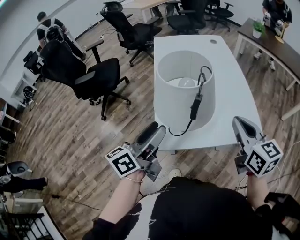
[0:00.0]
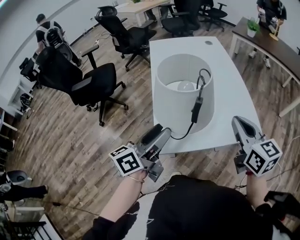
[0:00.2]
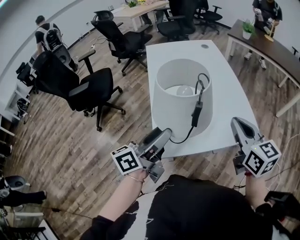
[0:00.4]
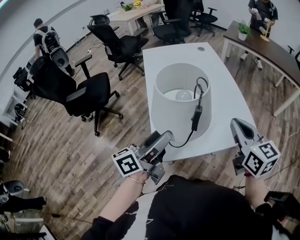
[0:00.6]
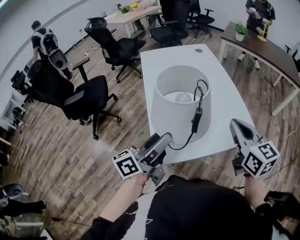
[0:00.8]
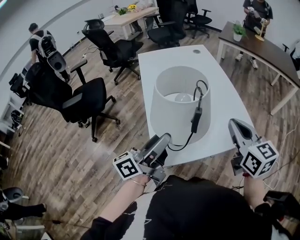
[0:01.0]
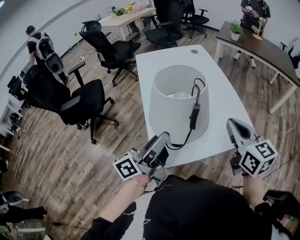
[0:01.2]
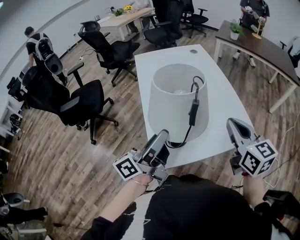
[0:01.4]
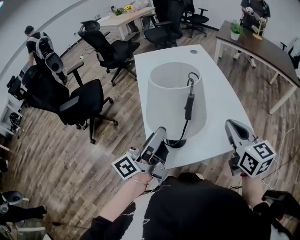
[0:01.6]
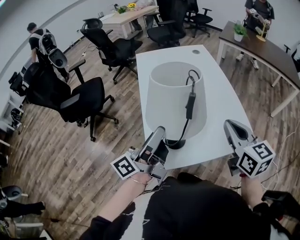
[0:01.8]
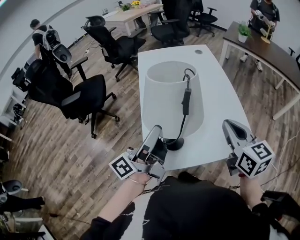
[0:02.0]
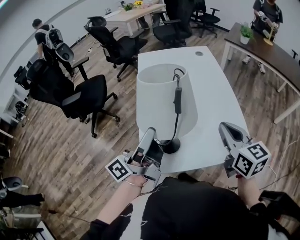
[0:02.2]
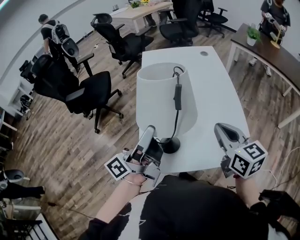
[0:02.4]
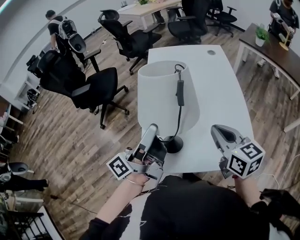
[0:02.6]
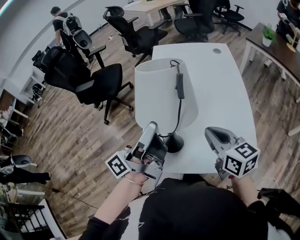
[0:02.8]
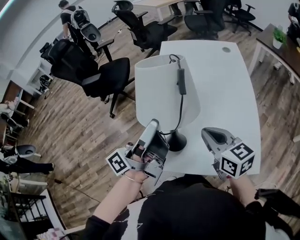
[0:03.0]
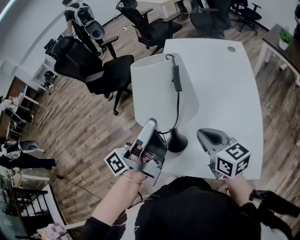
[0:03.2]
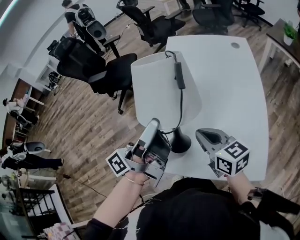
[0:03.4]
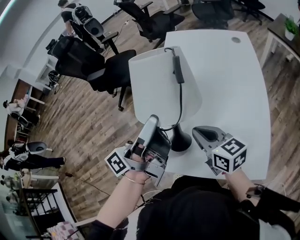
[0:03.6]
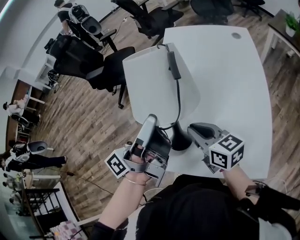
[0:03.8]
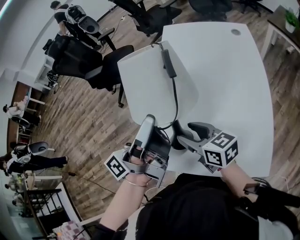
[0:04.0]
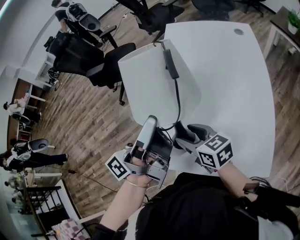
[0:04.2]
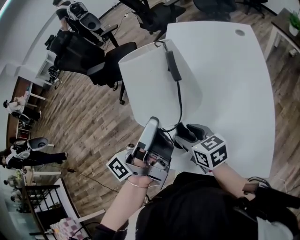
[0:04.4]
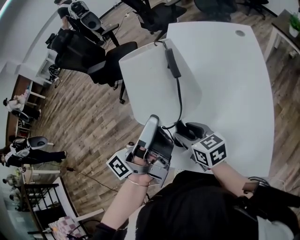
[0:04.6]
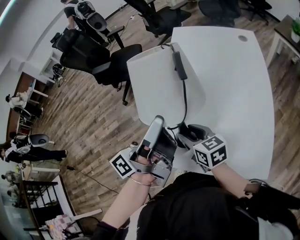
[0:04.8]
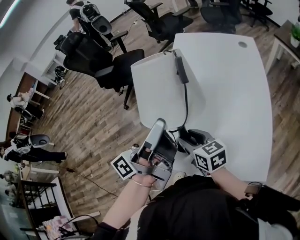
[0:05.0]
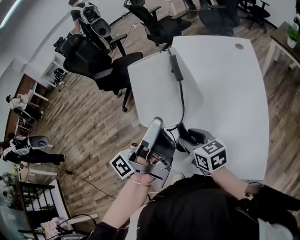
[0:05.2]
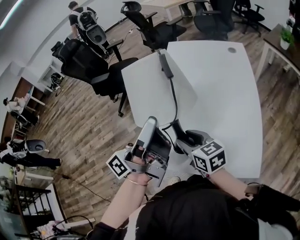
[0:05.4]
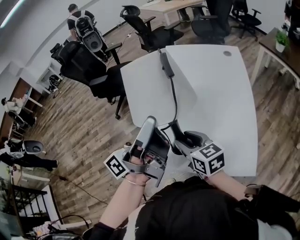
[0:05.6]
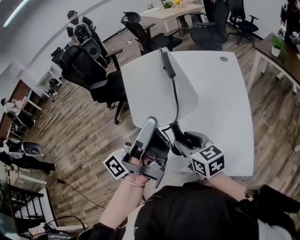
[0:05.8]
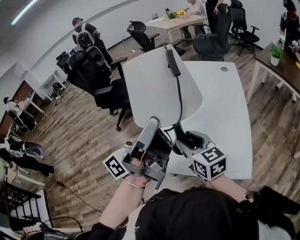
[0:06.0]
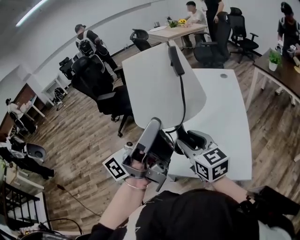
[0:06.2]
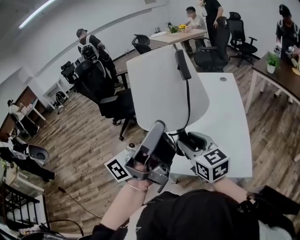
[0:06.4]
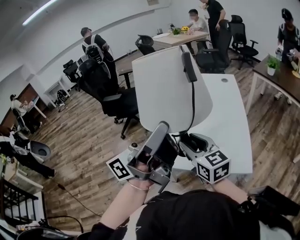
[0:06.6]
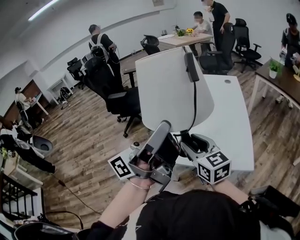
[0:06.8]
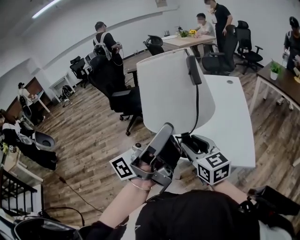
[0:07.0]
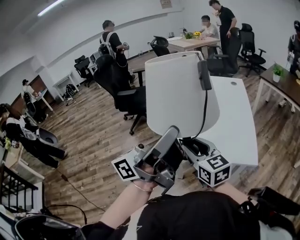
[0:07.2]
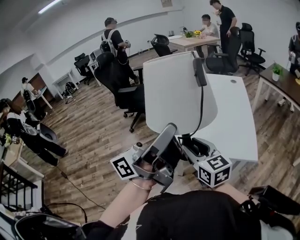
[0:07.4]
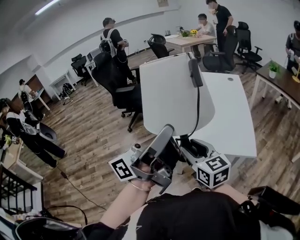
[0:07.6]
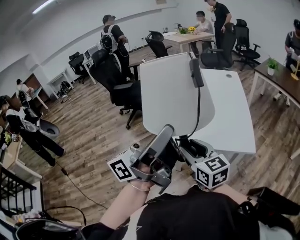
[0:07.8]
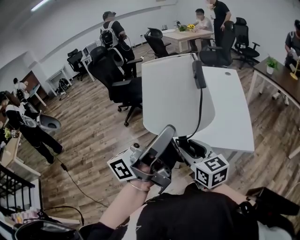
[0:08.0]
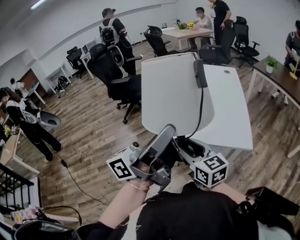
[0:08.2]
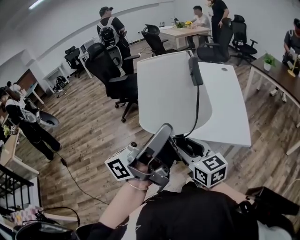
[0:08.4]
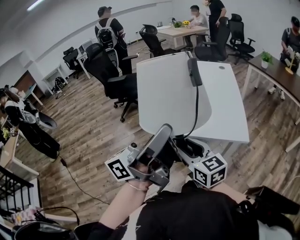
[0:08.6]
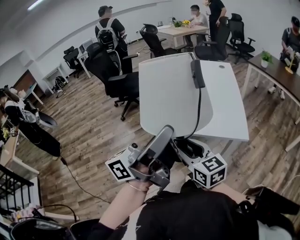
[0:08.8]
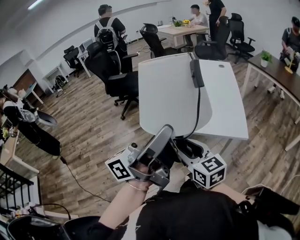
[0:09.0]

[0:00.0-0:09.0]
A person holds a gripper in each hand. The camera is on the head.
0.0 to 1.6 s: The left gripper heads forward, covering approximately 5 cm, and swivels approximately 30 degrees.
1.6 to 3.0 s: The left gripper ends up about 5 cm from where it was, and closes up. Meanwhile the right gripper moves some 10 cm, and turns by about 30 degrees.
3.0 to 4.4 s: The right gripper shifts some 15 cm downward and to the left, and opens its fingers.
4.4 to 6.0 s: Both grippers move upward and backward, approximately 15 cm. The right gripper changes its angle by about 20 degrees; the left gripper rotates approximately 20 degrees.
6.0 to 7.6 s: Both grippers move backward, about 25 cm.
7.6 to 9.0 s: The two grippers go approximately 10 cm backward.

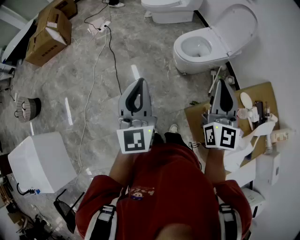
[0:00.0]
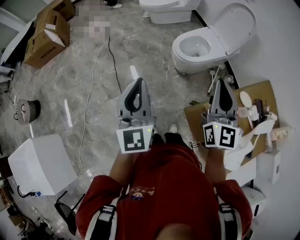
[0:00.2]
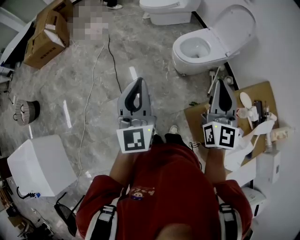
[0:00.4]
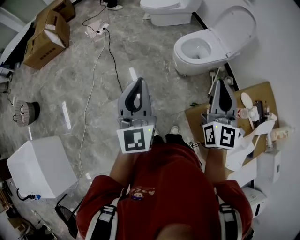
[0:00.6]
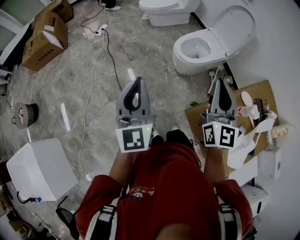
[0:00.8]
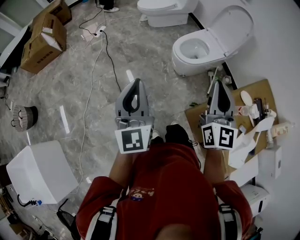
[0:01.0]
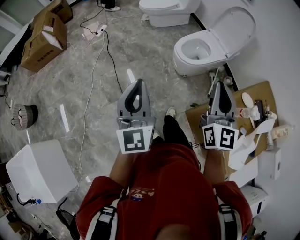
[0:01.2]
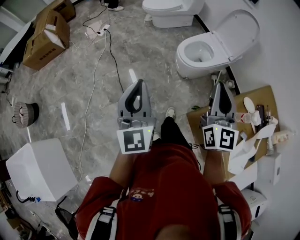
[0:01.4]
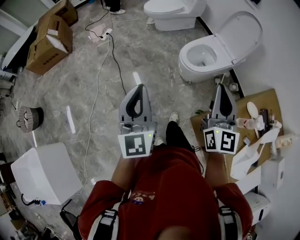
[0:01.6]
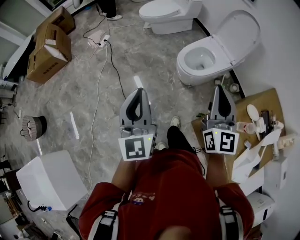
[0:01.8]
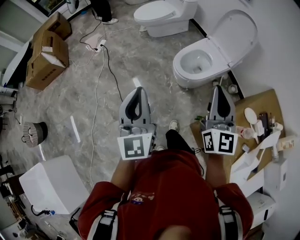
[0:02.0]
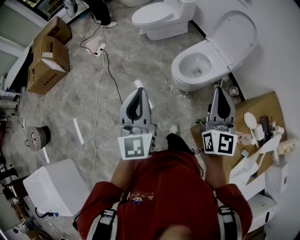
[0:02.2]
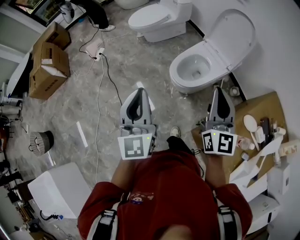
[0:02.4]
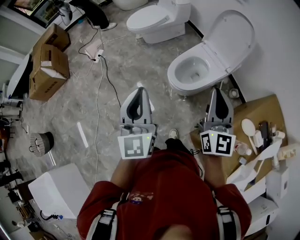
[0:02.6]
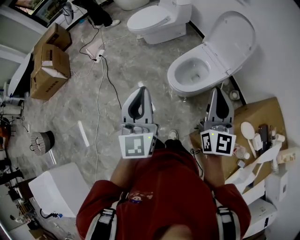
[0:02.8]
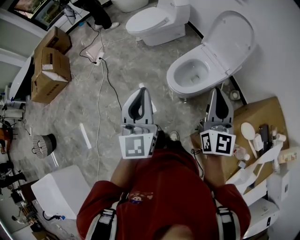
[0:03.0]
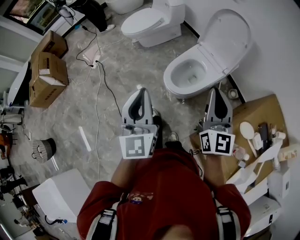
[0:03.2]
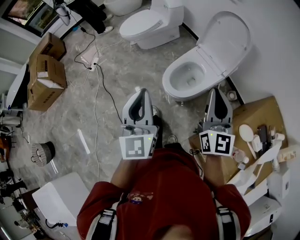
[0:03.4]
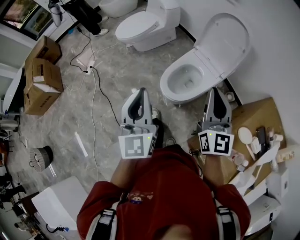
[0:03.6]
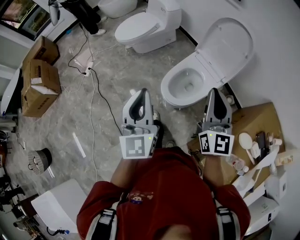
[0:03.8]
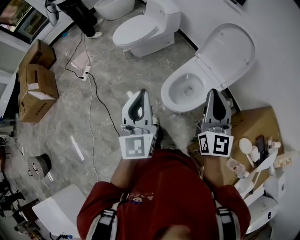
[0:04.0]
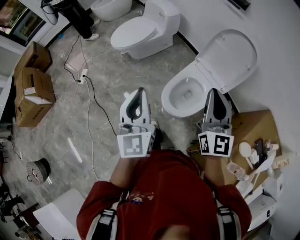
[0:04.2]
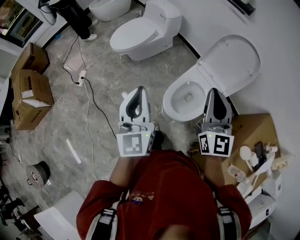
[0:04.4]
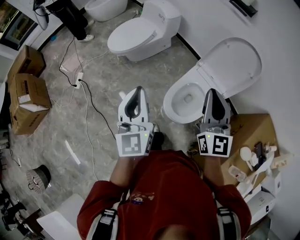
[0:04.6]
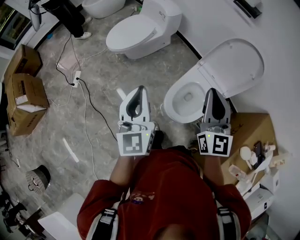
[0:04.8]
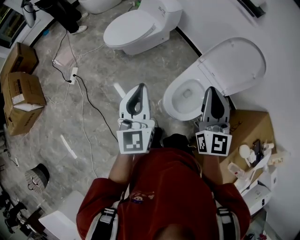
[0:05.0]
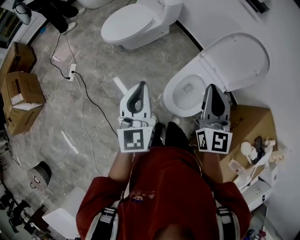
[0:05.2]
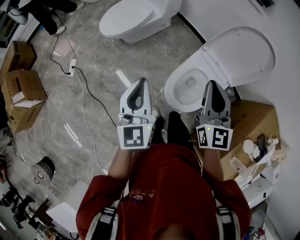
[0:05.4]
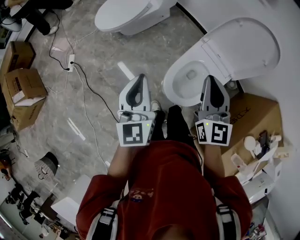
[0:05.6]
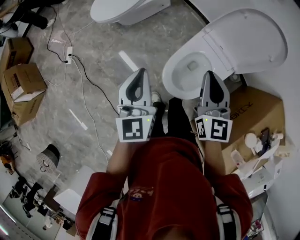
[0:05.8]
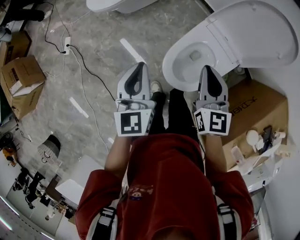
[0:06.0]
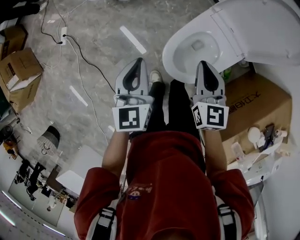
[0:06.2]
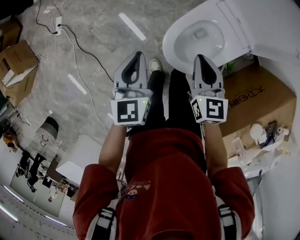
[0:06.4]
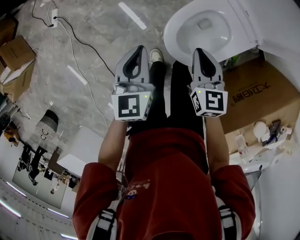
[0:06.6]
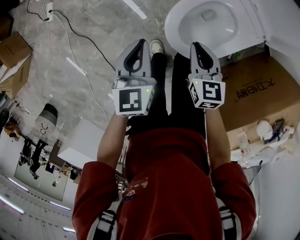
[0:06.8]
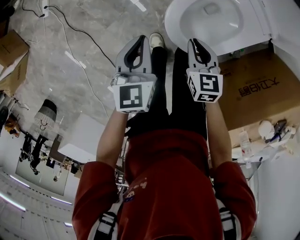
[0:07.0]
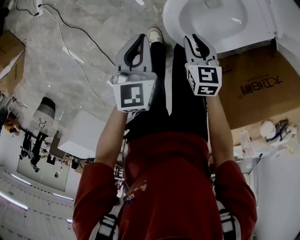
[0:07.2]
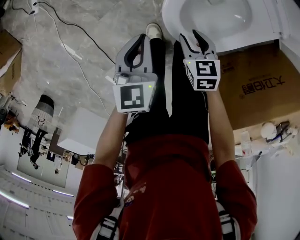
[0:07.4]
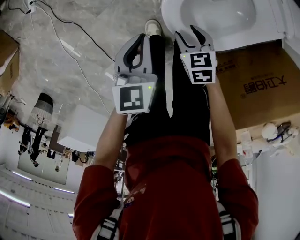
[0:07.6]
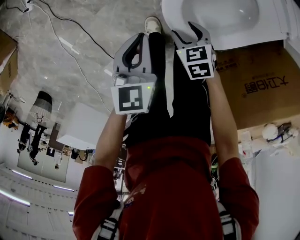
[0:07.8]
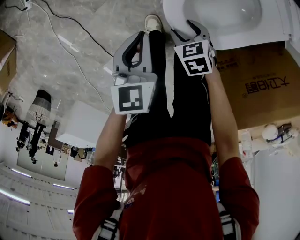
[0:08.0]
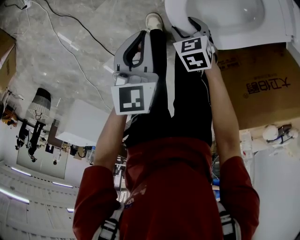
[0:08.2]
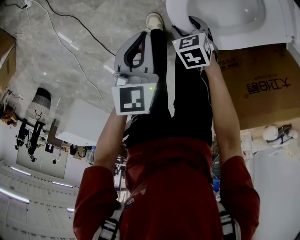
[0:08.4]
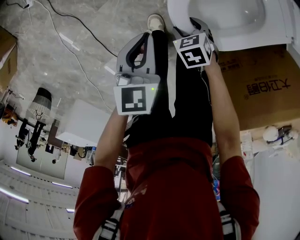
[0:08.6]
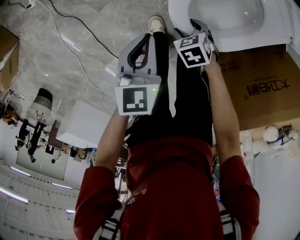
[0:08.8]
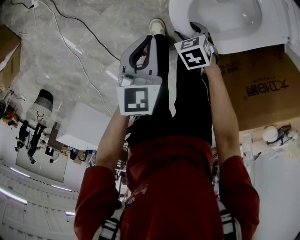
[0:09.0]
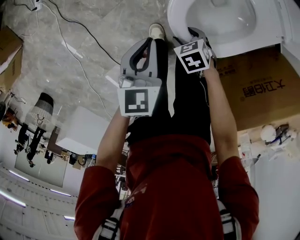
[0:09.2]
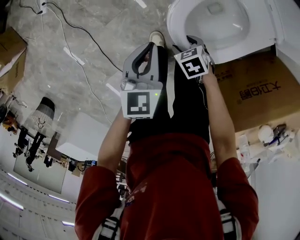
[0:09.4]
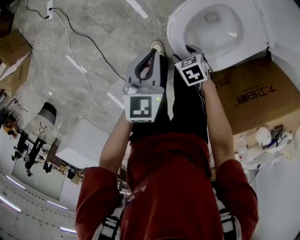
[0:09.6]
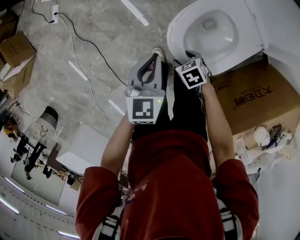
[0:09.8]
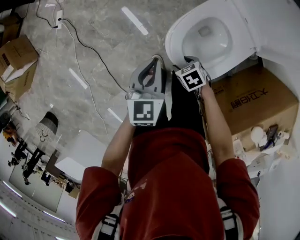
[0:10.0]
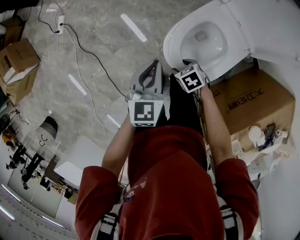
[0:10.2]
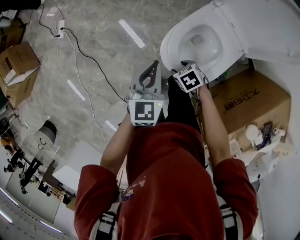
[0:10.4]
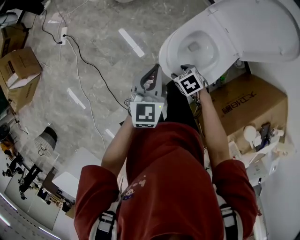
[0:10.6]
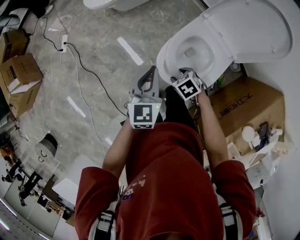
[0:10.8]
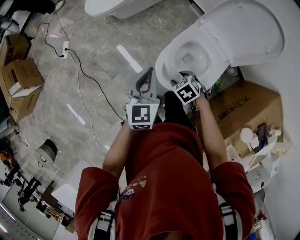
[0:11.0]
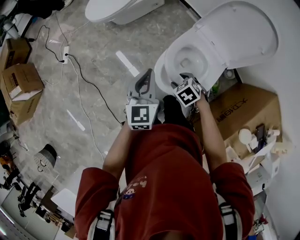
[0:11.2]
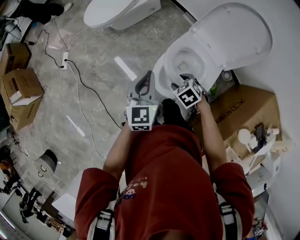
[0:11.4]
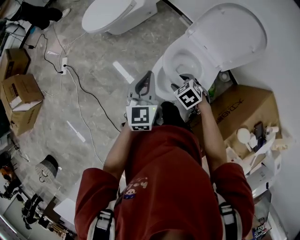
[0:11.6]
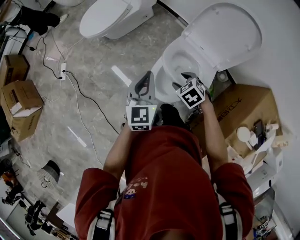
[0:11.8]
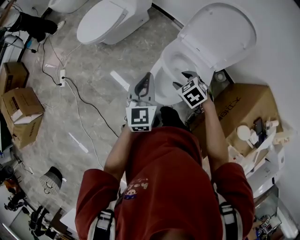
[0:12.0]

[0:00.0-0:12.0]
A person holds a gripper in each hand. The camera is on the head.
0.0 to 1.6 s: The right gripper is displaced to the left by some 5 cm, while the left gripper moves to the left and forward, about 10 cm.
1.6 to 3.0 s: The two grippers go approximately 25 cm forward and to the right.
3.0 to 4.4 s: Both grippers move forward and to the left, about 25 cm.
4.4 to 6.0 s: Both grippers travel together downward and forward, approximately 25 cm. The right gripper swivels about 20 degrees.
6.0 to 7.6 s: Both grippers travel together downward, roughly 35 cm. The right gripper tilts its fingers approximately 40 degrees downward, and opens. The left gripper turns by roughly 30 degrees.
7.6 to 9.0 s: The right gripper changes place by about 5 cm.
9.0 to 10.4 s: The two grippers go about 20 cm upward.
10.4 to 12.0 s: The left gripper moves upward, some 10 cm. Meanwhile the right gripper shifts roughly 20 cm upward, and swivels roughly 20 degrees.

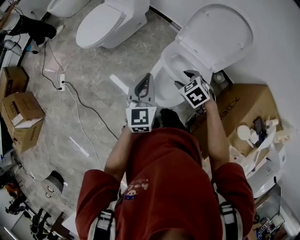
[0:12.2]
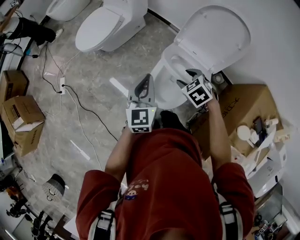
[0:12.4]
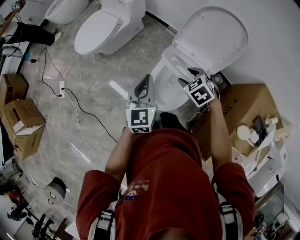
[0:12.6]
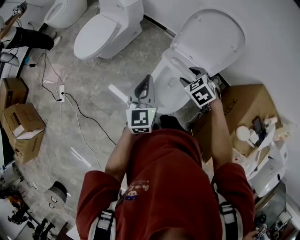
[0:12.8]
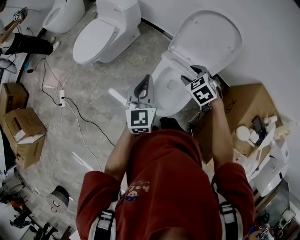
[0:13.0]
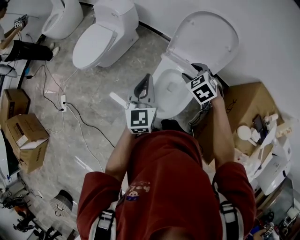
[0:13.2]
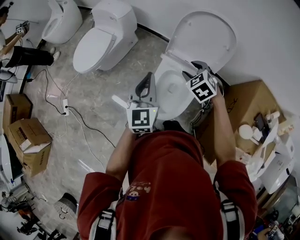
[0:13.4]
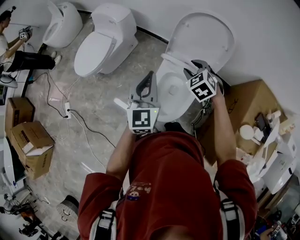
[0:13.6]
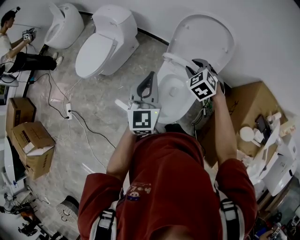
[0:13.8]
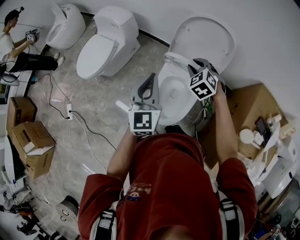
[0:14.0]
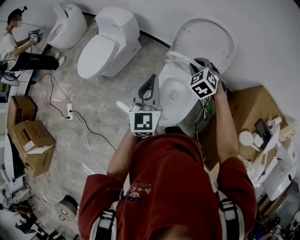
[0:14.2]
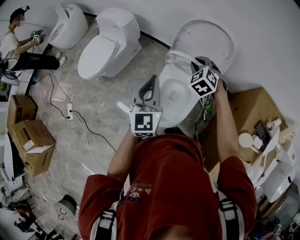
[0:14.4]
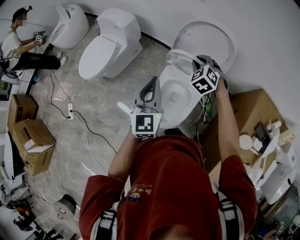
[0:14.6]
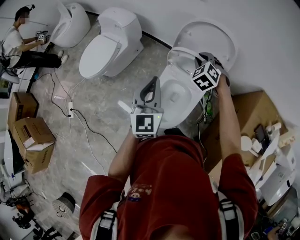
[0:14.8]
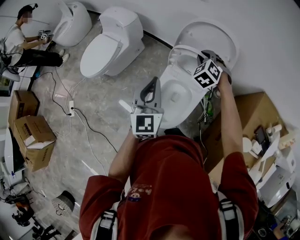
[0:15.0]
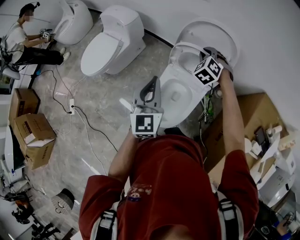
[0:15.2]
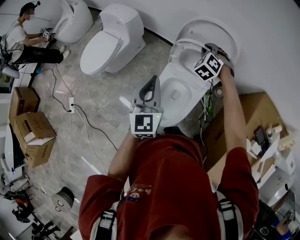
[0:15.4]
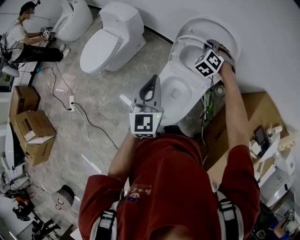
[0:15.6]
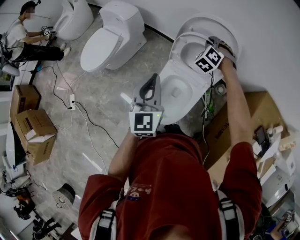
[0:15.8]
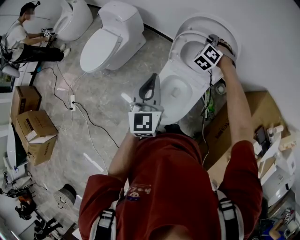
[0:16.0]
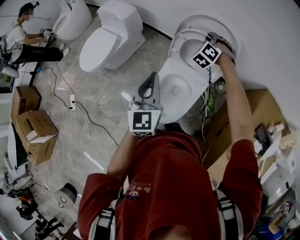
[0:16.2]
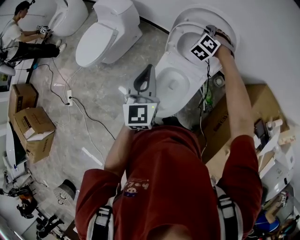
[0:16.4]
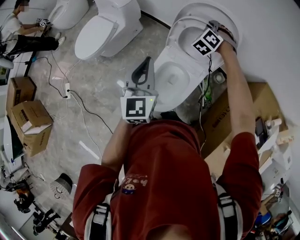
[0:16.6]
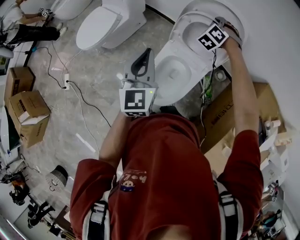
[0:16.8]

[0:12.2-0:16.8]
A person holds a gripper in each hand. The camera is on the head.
12.2 to 13.8 s: The right gripper shifts approximately 20 cm forward, to the right and upward, and turns by roughly 30 degrees. Meanwhile the left gripper shifts approximately 15 cm upward, to the right and forward.
13.8 to 15.2 s: The right gripper shifts approximately 15 cm forward and to the right.
15.2 to 16.8 s: The right gripper is displaced forward by roughly 10 cm.
